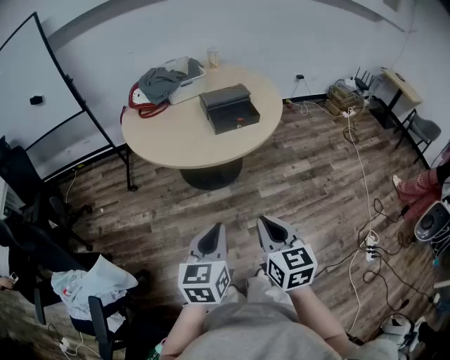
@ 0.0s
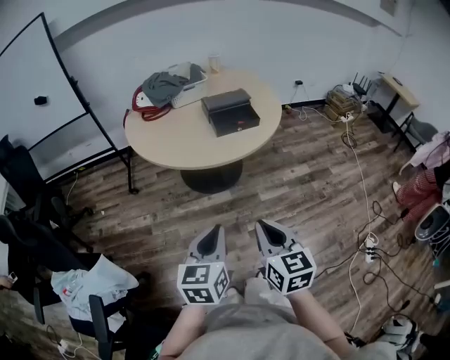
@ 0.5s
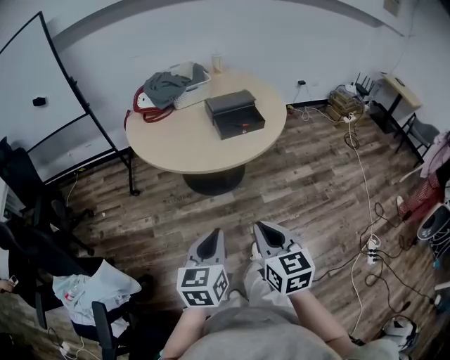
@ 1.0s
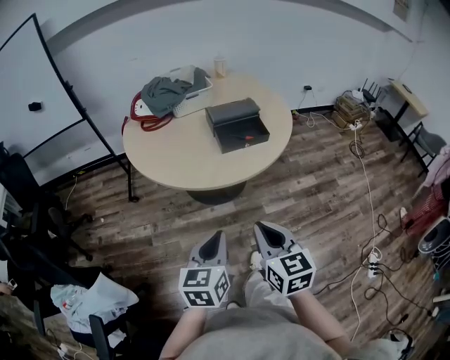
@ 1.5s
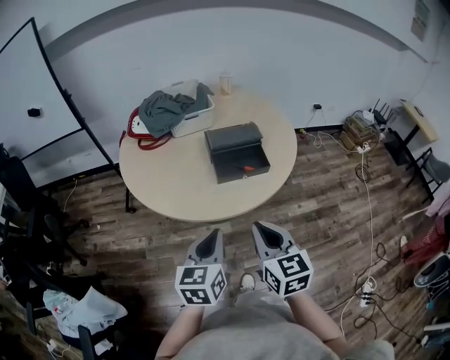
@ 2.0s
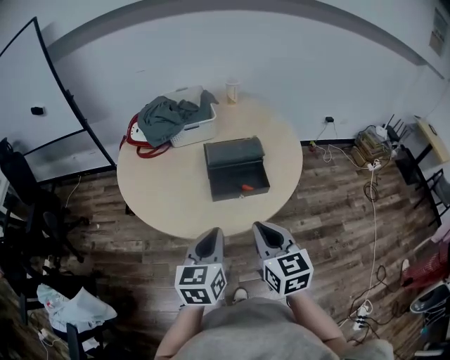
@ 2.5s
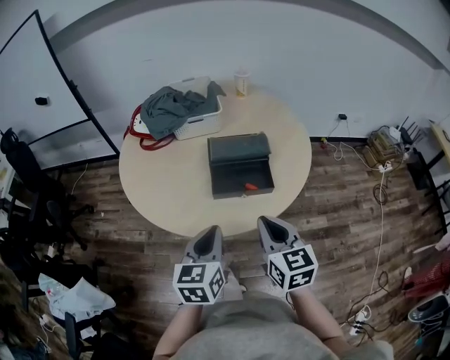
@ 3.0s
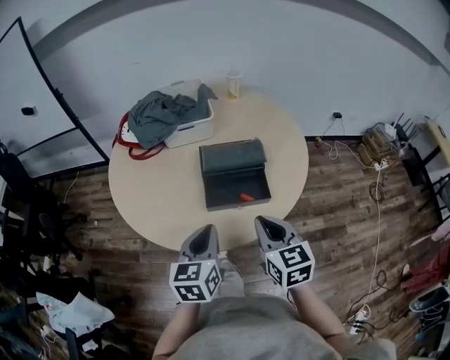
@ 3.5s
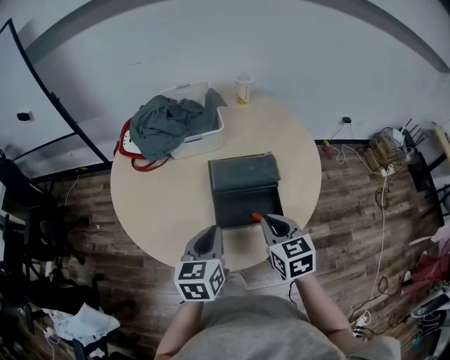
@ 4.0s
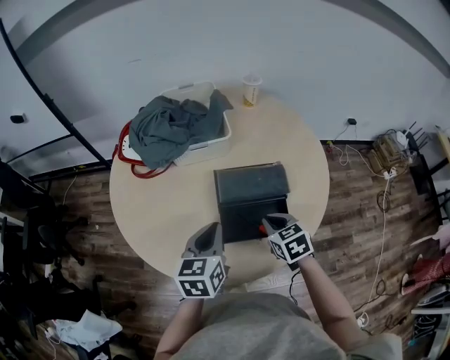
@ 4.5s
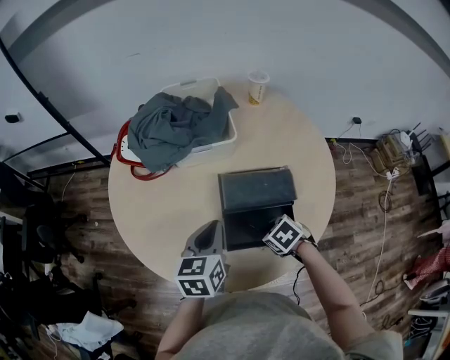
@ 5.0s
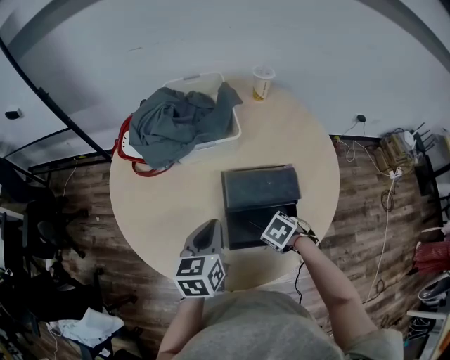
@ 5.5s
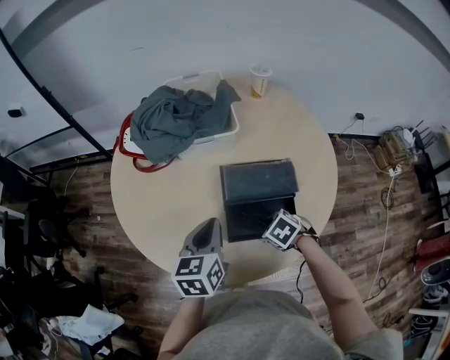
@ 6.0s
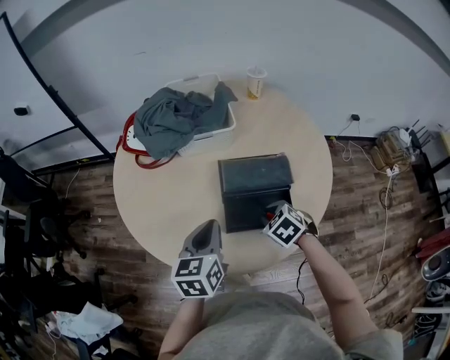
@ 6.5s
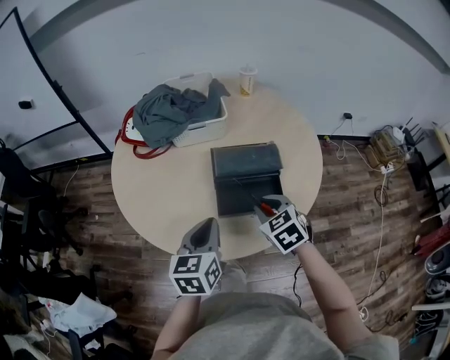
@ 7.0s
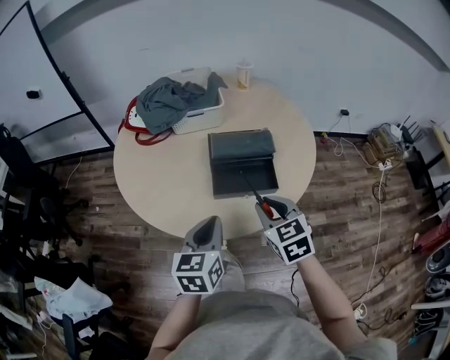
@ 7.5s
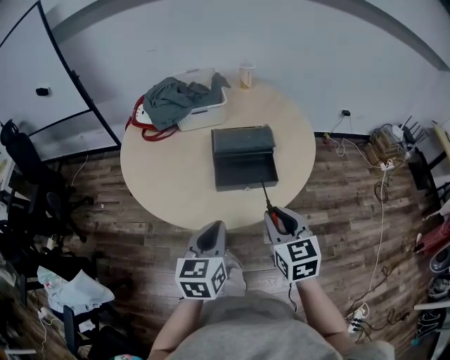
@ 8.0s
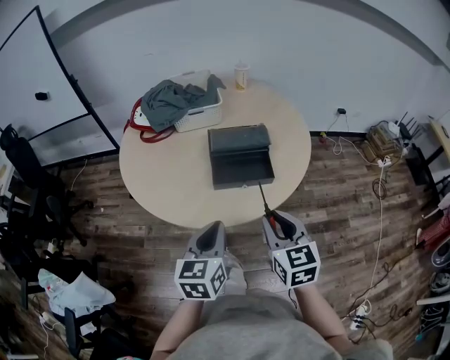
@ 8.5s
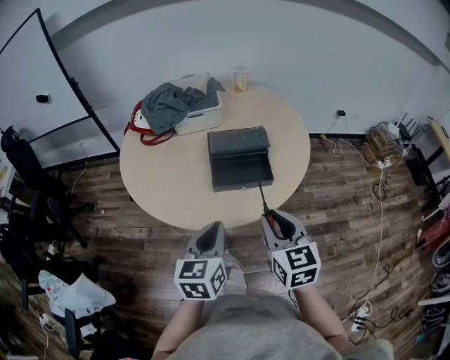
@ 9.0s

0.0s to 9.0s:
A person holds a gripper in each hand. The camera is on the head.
0.0s to 2.0s: Both grippers move forward, approximately 20 cm.
2.0s to 4.5s: The right gripper is displaced forward and downward by some 40 cm, and swivels roughly 30 degrees. The left gripper goes about 30 cm forward.
4.5s to 7.0s: The left gripper changes place by about 10 cm. The right gripper travels downward and back again, roughly 10 cm each way.
7.0s to 9.0s: The right gripper goes approximately 20 cm backward and upward, and swivels some 30 degrees. The left gripper moves backward, some 15 cm.

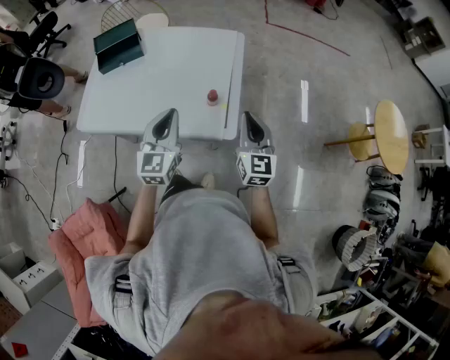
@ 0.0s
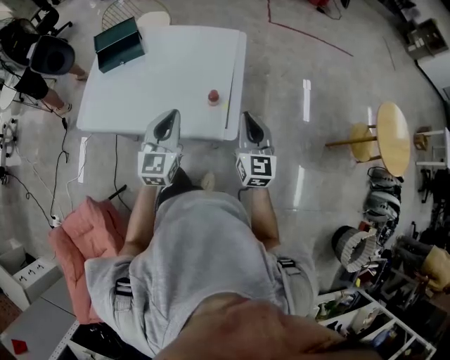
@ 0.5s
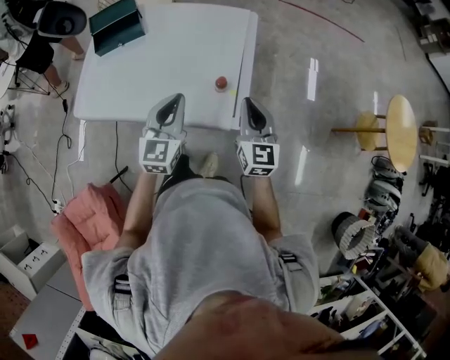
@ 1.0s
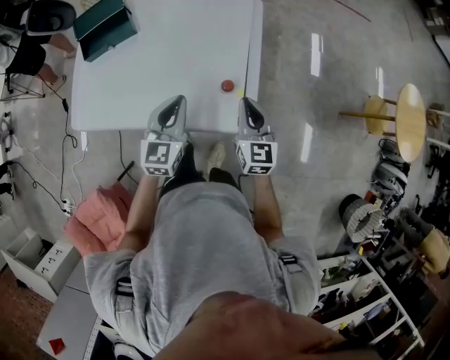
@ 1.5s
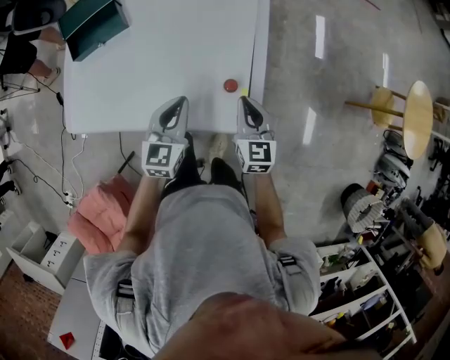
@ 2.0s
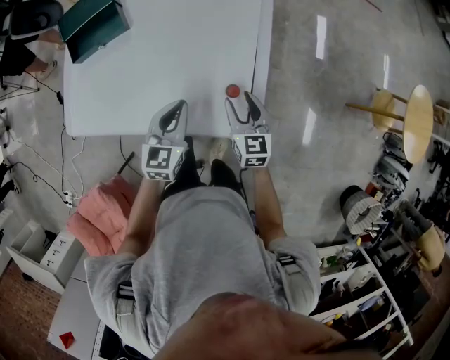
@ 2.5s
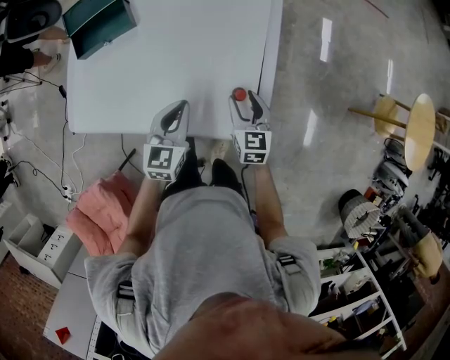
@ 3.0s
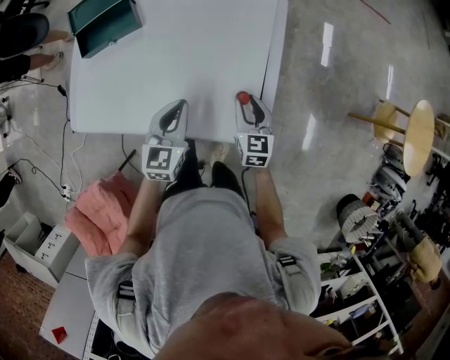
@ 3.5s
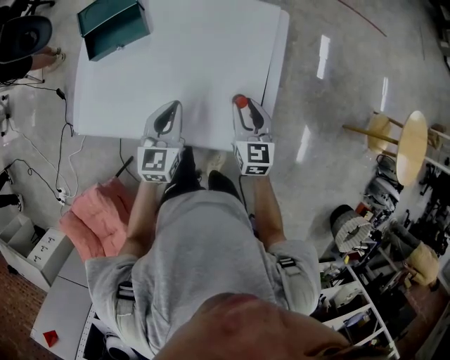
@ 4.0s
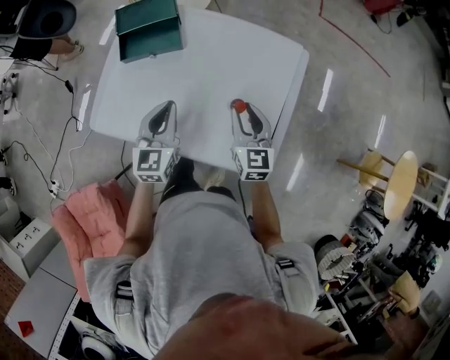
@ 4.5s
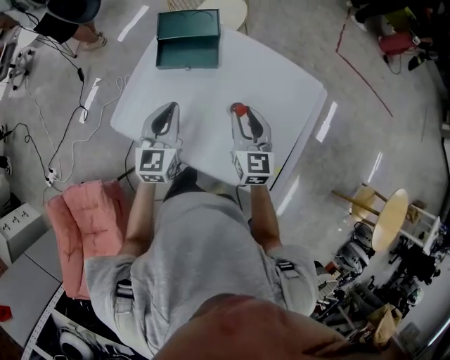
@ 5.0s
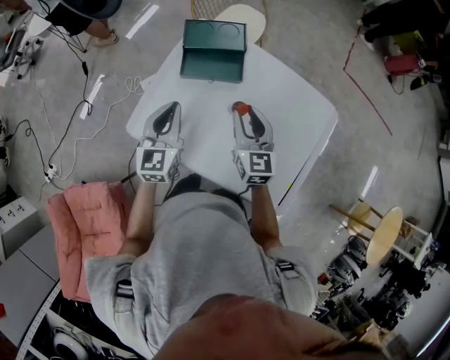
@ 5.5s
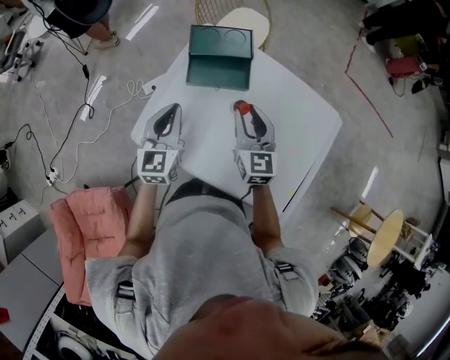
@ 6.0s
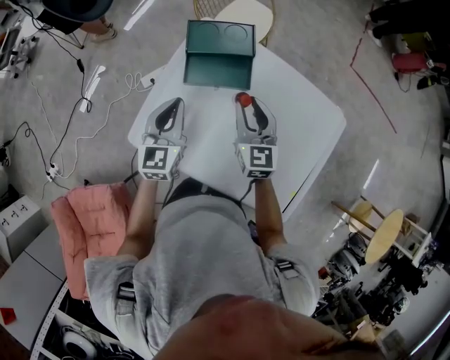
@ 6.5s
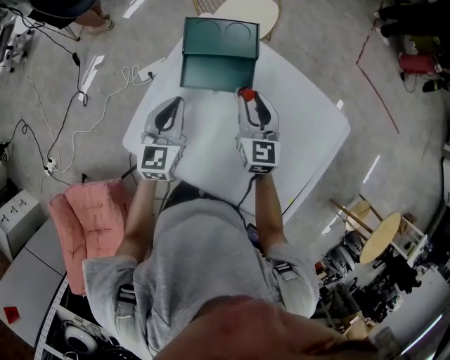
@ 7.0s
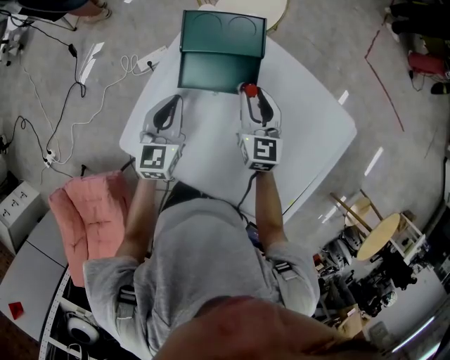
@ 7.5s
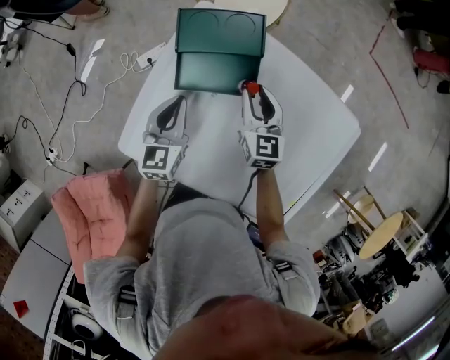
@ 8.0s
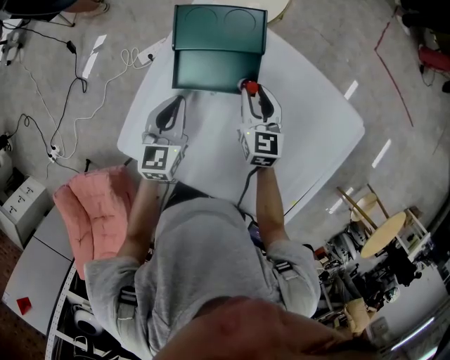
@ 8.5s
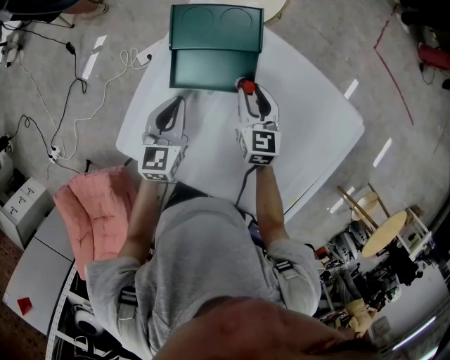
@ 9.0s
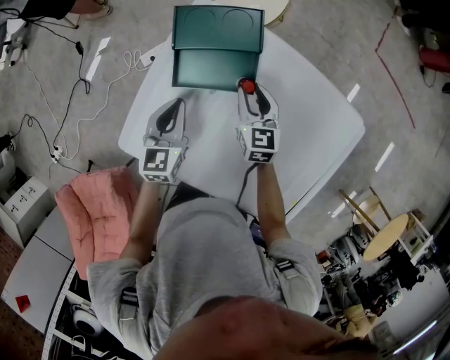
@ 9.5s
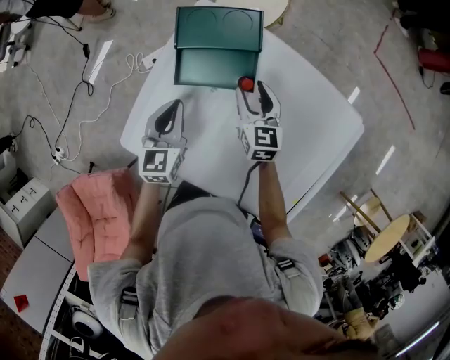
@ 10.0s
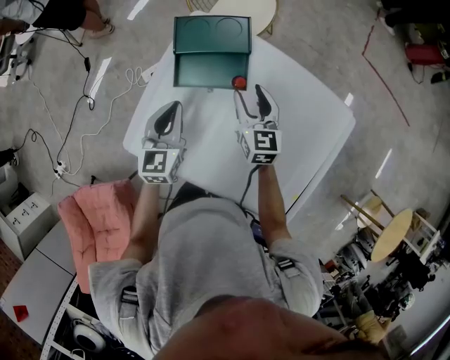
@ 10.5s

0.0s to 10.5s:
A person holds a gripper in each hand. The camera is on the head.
0.0s to 2.0s: The right gripper heads downward, forward and to the left, covering roughly 20 cm; the left gripper travels downward and forward by approximately 20 cm, and changes its angle by some 20 degrees.
2.0s to 4.0s: The right gripper moves forward and to the left, roughly 5 cm, and opens, while the left gripper heads to the left, covering some 5 cm.
4.0s to 6.5s: The two grippers go approximately 35 cm to the left and forward. The left gripper rotates some 20 degrees. Meanwhile the right gripper turns by roughly 20 degrees.
6.5s to 8.5s: The two grippers go about 15 cm downward and forward.
8.5s to 10.5s: Both grippers move upward, about 5 cm.

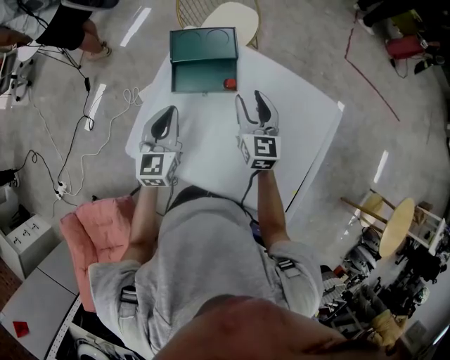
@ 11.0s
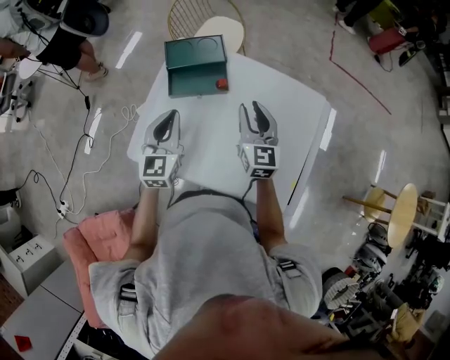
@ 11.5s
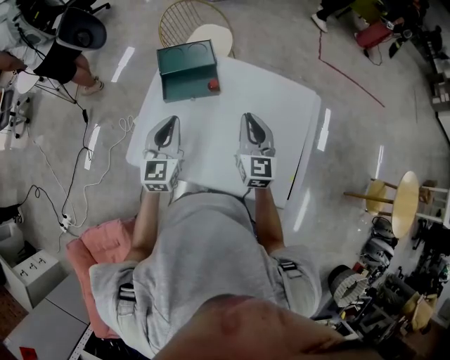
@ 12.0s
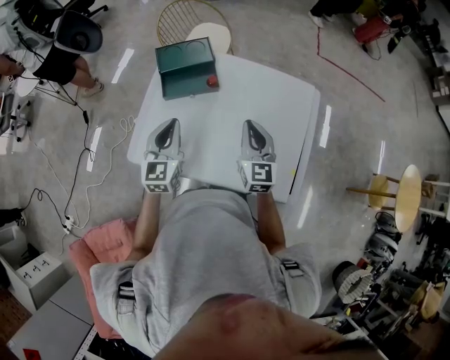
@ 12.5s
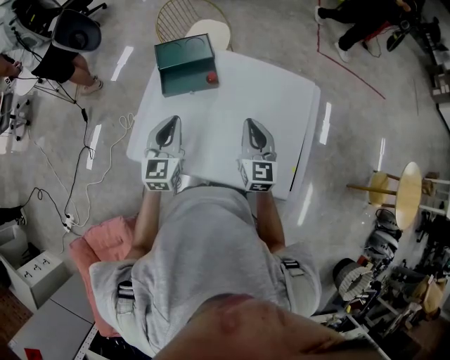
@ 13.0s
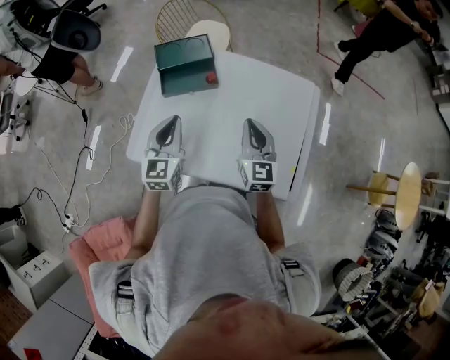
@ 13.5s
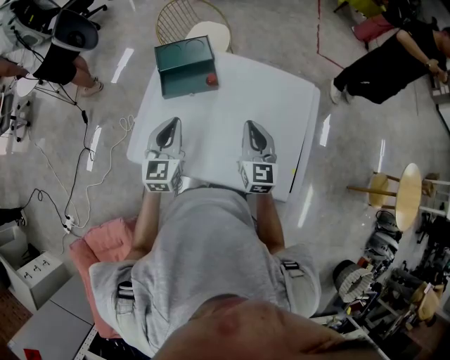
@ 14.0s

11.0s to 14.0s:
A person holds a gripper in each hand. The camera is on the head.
11.0s to 12.5s: The left gripper goes about 10 cm backward. Meanwhile the right gripper travels backward by about 15 cm, and closes.
12.5s to 14.0s: Neither gripper changes place.

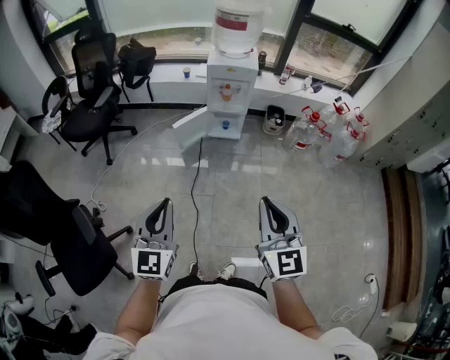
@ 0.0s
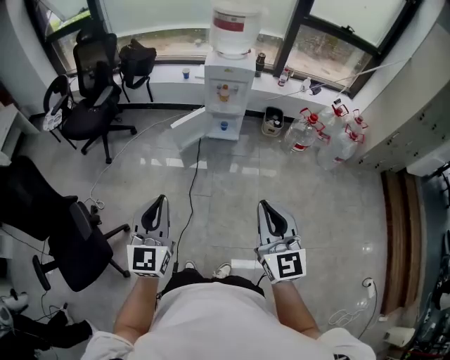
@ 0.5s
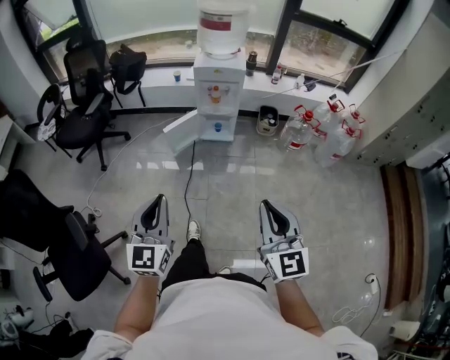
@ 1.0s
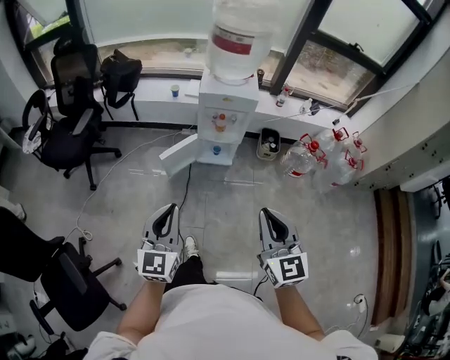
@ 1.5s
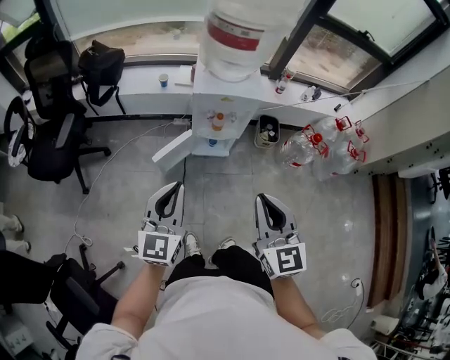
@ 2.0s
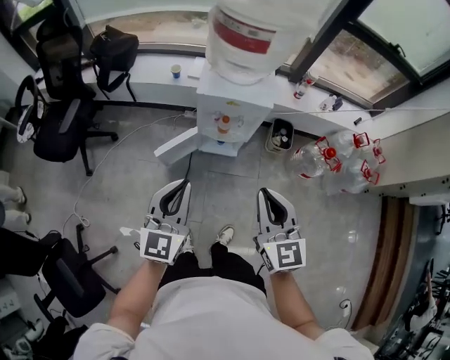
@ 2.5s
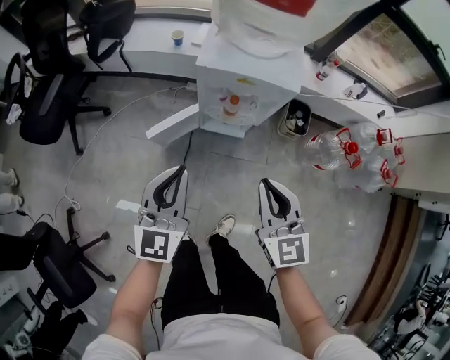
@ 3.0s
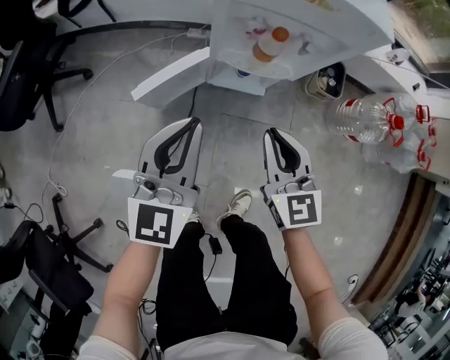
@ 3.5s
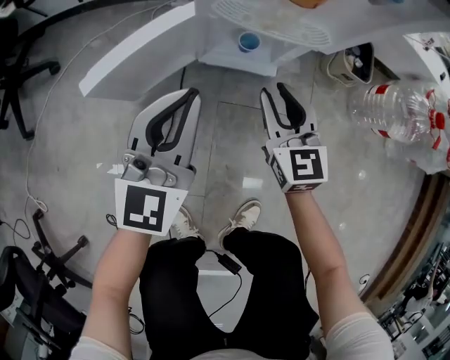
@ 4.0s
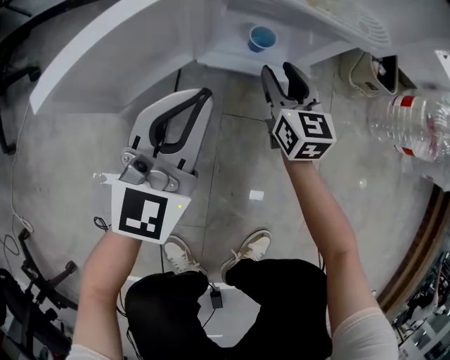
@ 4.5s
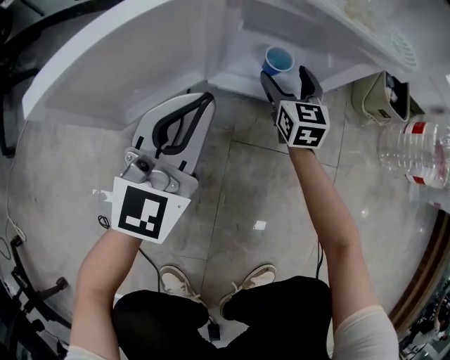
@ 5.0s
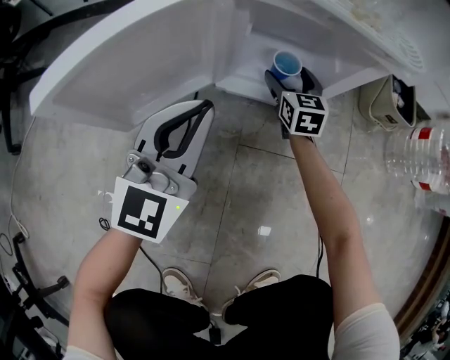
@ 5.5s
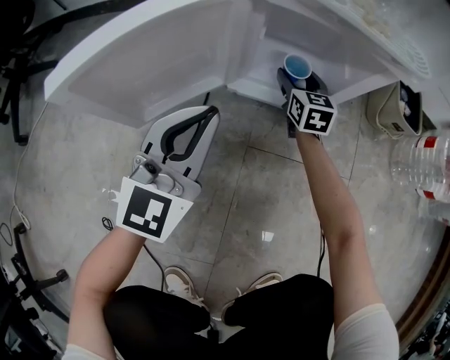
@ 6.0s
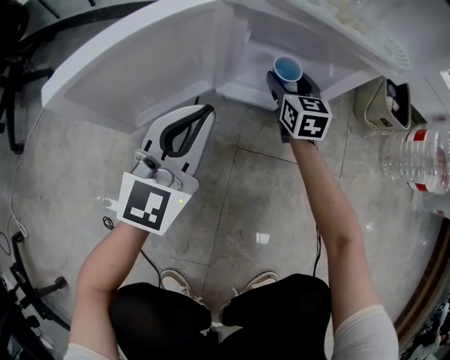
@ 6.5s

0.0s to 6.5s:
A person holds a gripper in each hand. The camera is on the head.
0.0s to 2.0s: The two grippers go approximately 40 cm forward.
2.0s to 4.5s: The left gripper goes some 60 cm downward, while the right gripper goes approximately 90 cm downward and forward, and opens up.
4.5s to 6.5s: The right gripper heads forward and downward, covering some 10 cm, while the left gripper moves downward, roughly 5 cm.
